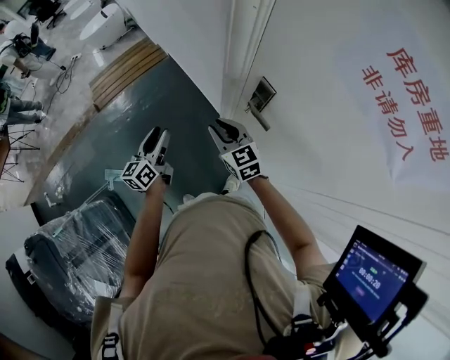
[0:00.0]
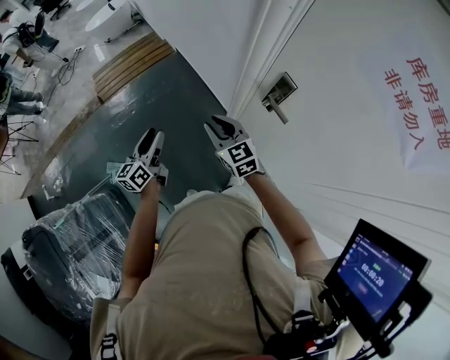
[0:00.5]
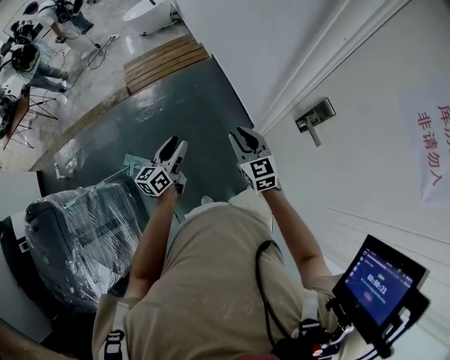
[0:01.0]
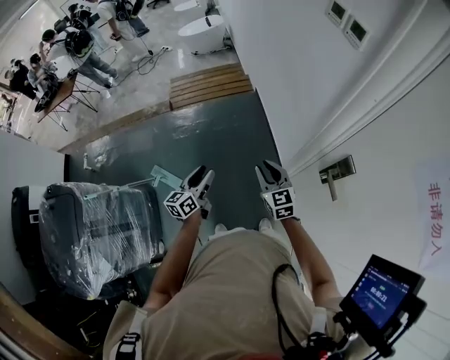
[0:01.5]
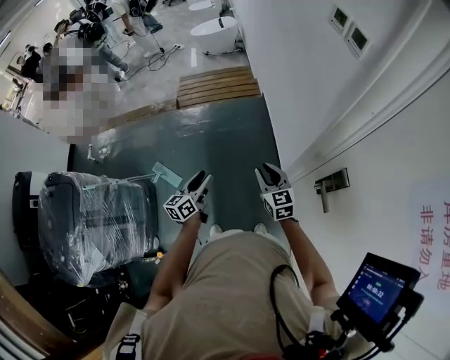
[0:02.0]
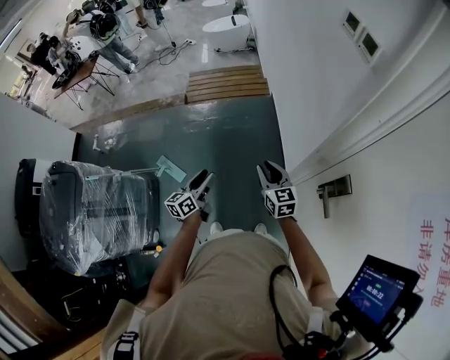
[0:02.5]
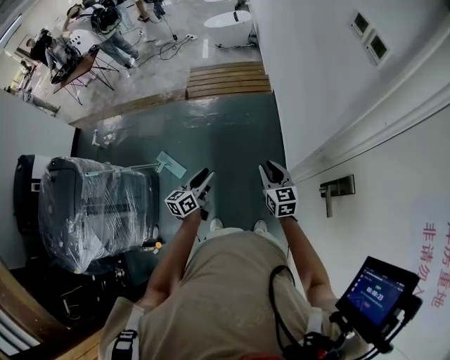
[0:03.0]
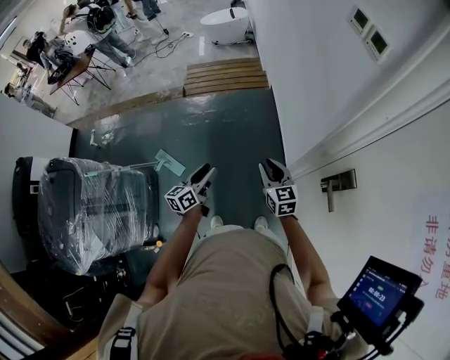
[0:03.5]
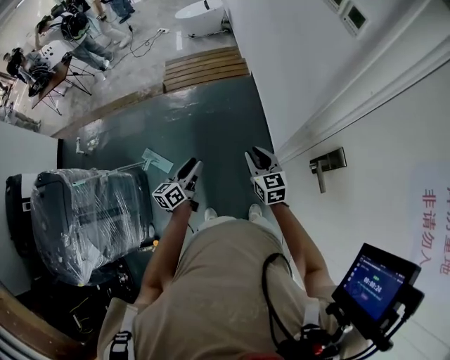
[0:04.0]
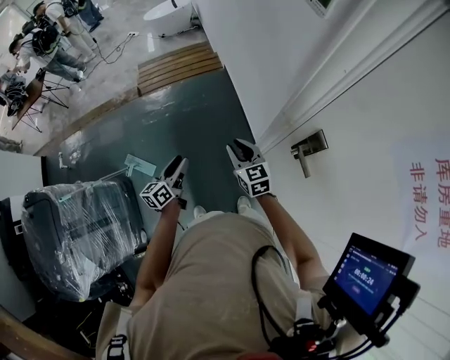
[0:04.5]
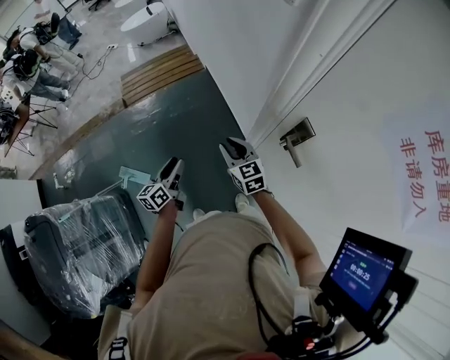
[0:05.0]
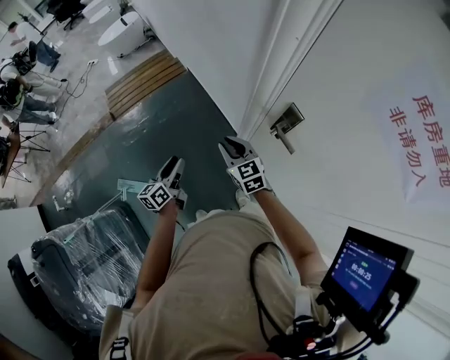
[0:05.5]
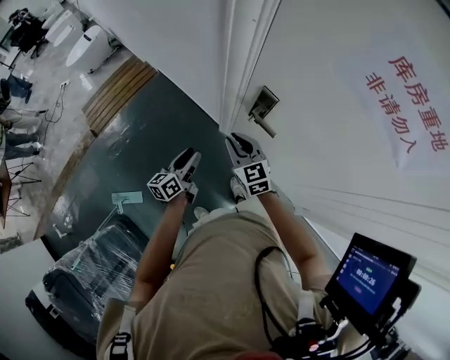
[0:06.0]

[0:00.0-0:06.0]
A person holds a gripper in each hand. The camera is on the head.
0.0 to 2.0 s: The right gripper goes approximately 10 cm to the left and forward. The left gripper shifts some 15 cm to the left, and changes its angle by about 20 degrees.
2.0 to 4.0 s: There are only small adjustments of the grippers.
4.0 to 6.0 s: The right gripper shifts by some 15 cm, and changes its angle by approximately 30 degrees, while the left gripper shifts by roughly 20 cm, and rotates about 40 degrees.

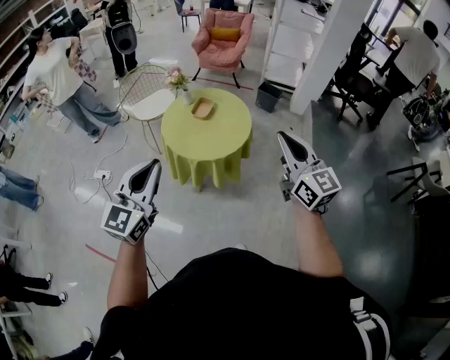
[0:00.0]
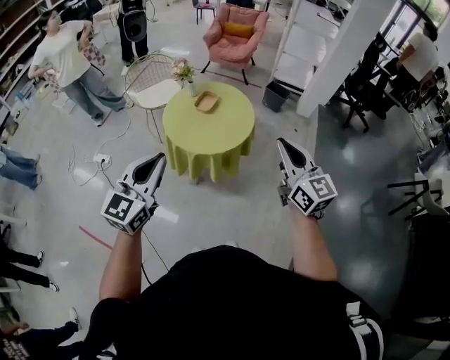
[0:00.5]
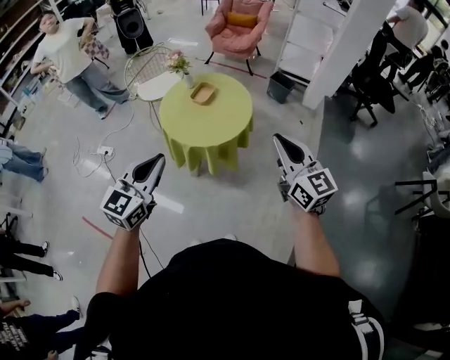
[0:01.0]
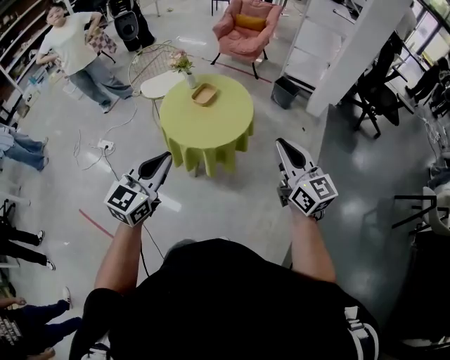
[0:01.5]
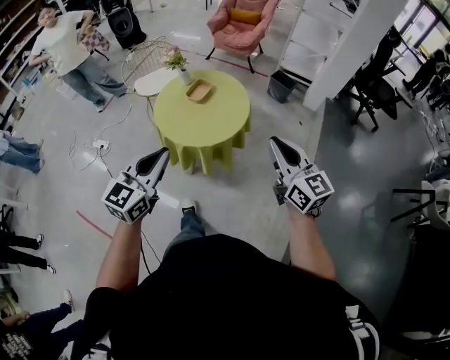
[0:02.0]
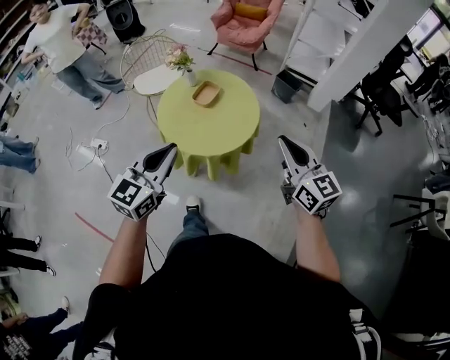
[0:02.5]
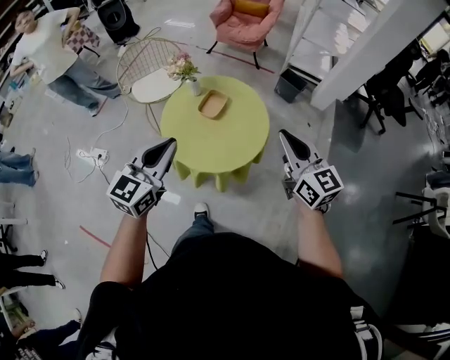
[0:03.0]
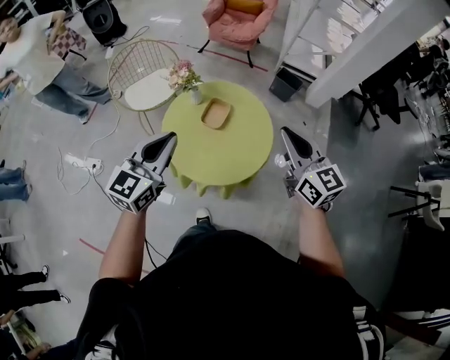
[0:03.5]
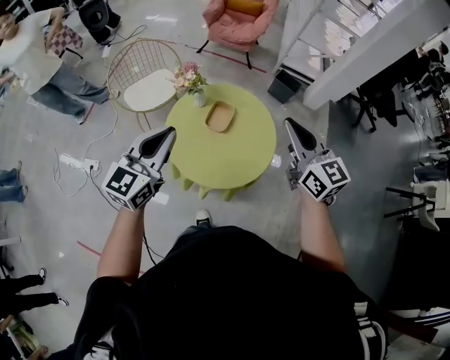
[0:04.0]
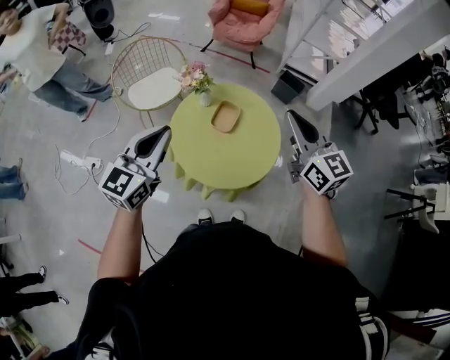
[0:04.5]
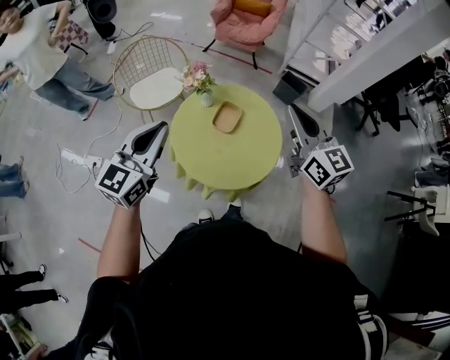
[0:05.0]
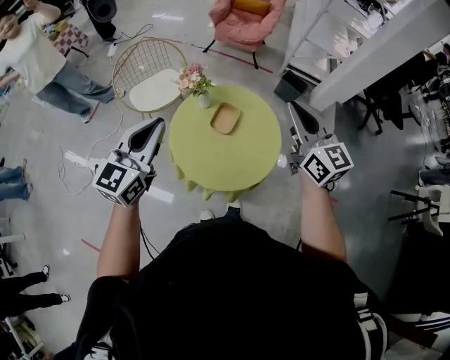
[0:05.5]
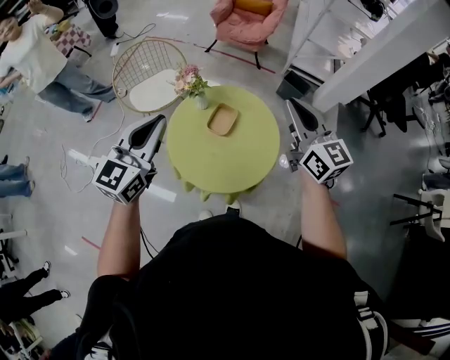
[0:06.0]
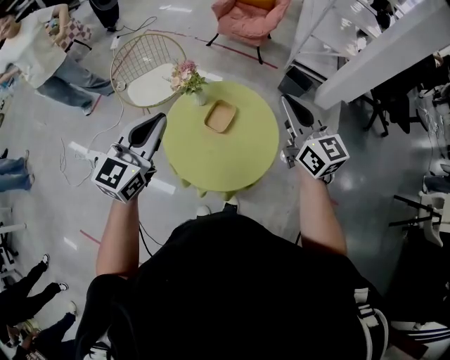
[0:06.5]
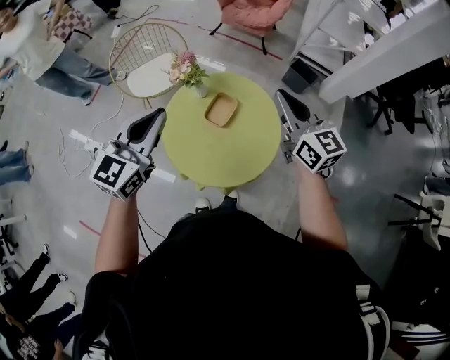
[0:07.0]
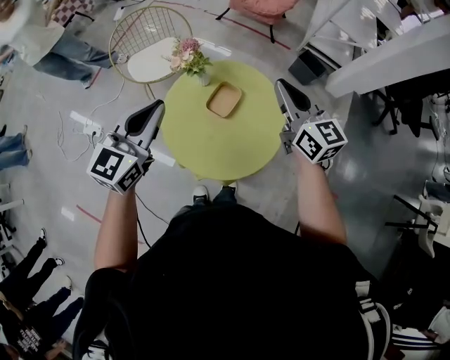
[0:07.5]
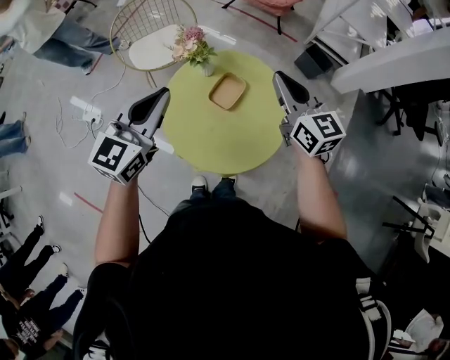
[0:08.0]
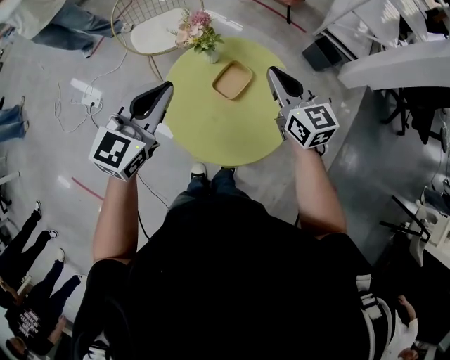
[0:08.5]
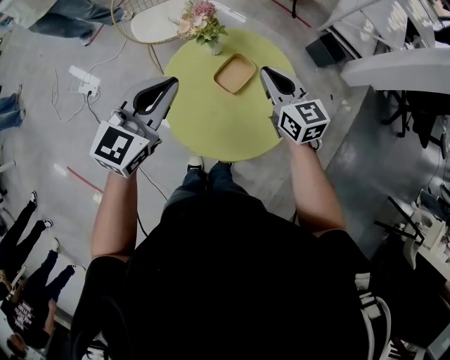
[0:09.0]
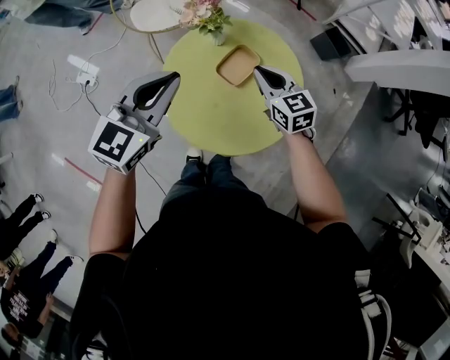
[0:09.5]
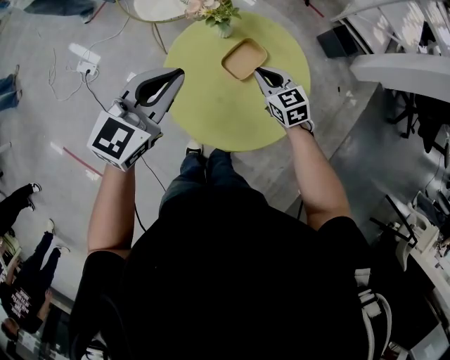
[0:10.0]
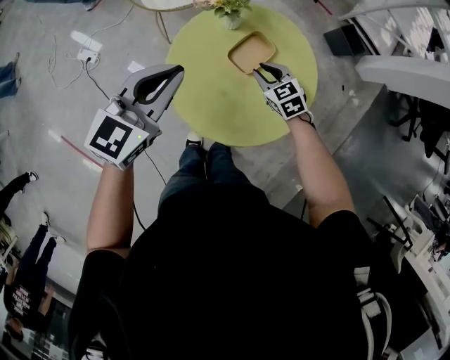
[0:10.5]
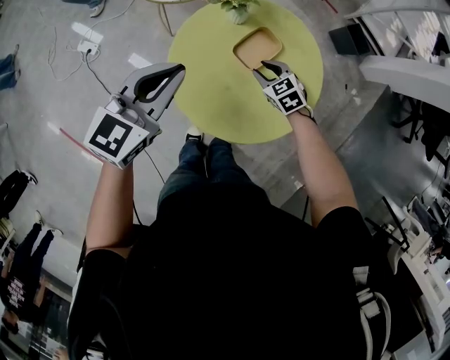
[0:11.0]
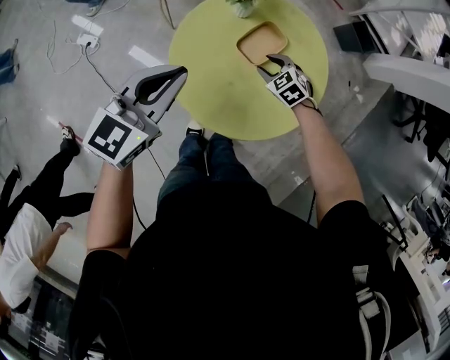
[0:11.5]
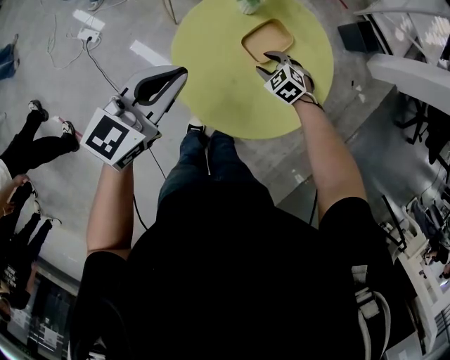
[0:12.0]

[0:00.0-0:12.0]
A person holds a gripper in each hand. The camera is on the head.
0.0 to 2.0 s: The grippers both shift to the right and downward by approximately 15 cm.
2.0 to 4.0 s: The grippers both shift forward and to the left by about 40 cm.
4.0 to 6.0 s: The right gripper shifts approximately 5 cm forward. Meanwhile the left gripper ends up some 5 cm from where it was.
6.0 to 8.0 s: The right gripper shifts roughly 15 cm downward and forward, while the left gripper travels downward and forward by approximately 10 cm.
8.0 to 10.0 s: The right gripper shifts about 25 cm downward, and changes its angle by roughly 30 degrees. Meanwhile the left gripper shifts approximately 10 cm downward.
10.0 to 12.0 s: The right gripper heads downward, covering approximately 15 cm, swivels approximately 40 degrees, and opens its fingers. Meanwhile the left gripper goes approximately 5 cm downward.

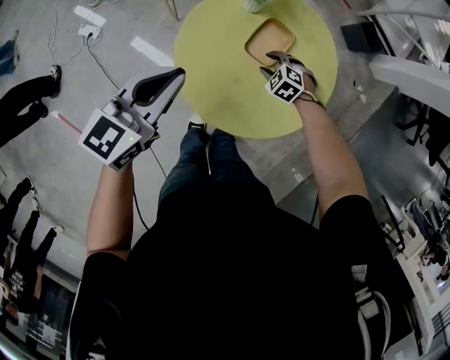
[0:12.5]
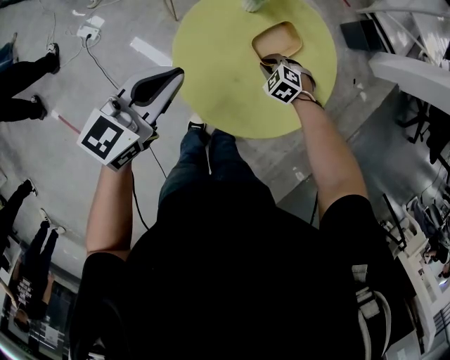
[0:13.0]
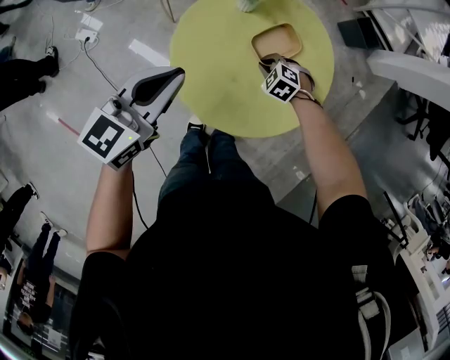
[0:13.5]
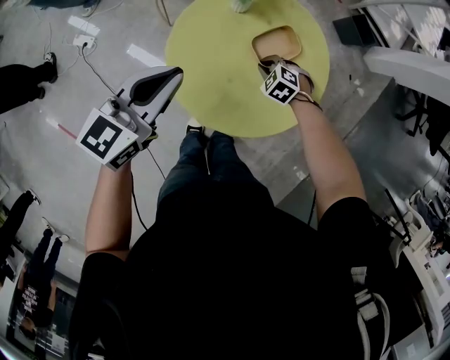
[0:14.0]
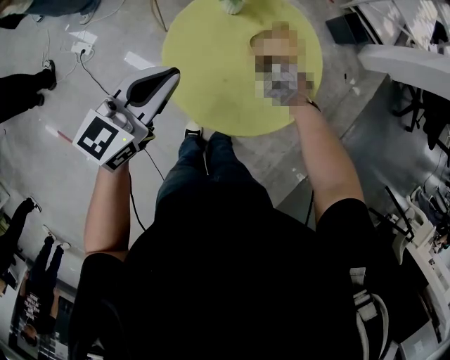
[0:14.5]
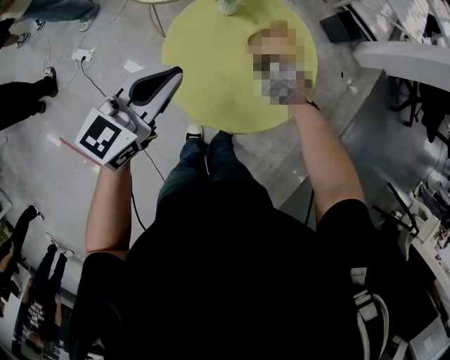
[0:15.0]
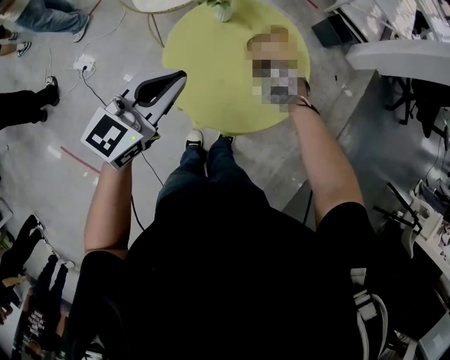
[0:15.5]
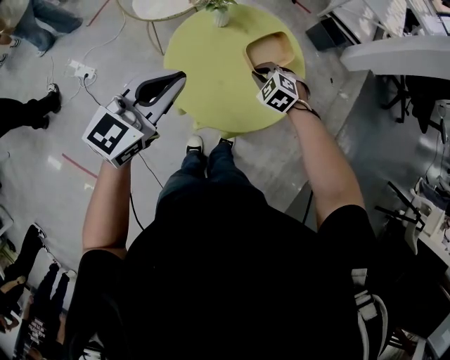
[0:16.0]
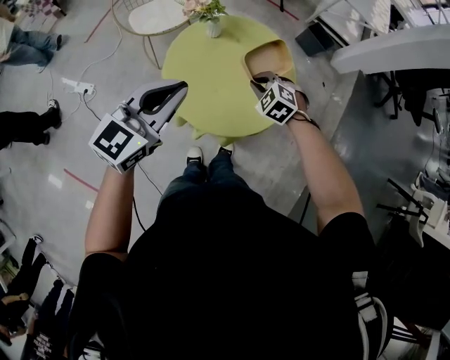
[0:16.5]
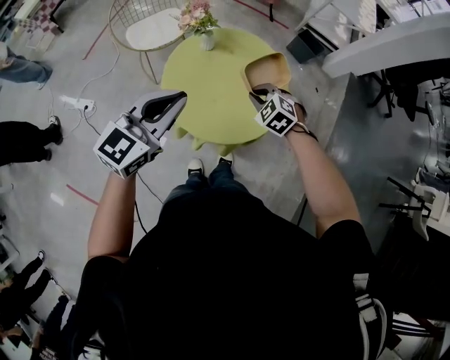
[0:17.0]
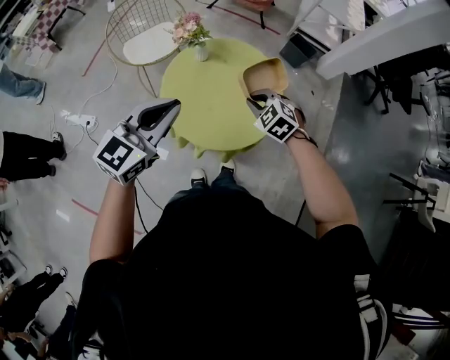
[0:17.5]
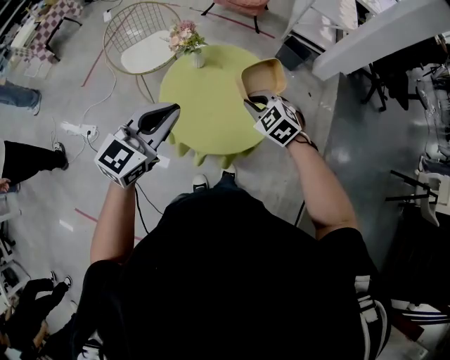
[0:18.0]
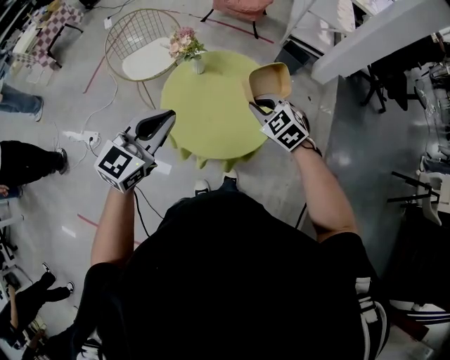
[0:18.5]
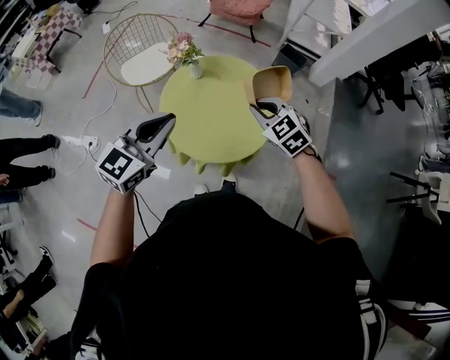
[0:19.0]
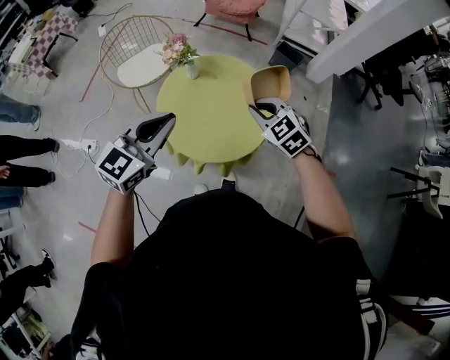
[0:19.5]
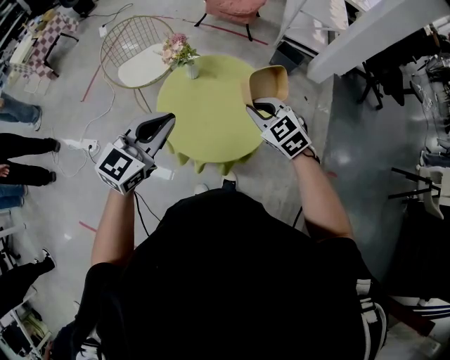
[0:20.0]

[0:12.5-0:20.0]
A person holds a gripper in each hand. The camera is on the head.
12.5 to 14.5 s: The right gripper closes.
14.5 to 16.5 s: The grippers both shift upward and backward by approximately 15 cm.
16.5 to 18.0 s: The left gripper moves roughly 5 cm. Meanwhile the right gripper moves upward and backward, some 15 cm.
18.0 to 20.0 s: The right gripper shifts approximately 5 cm upward.

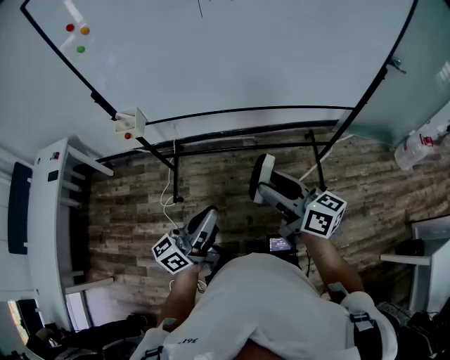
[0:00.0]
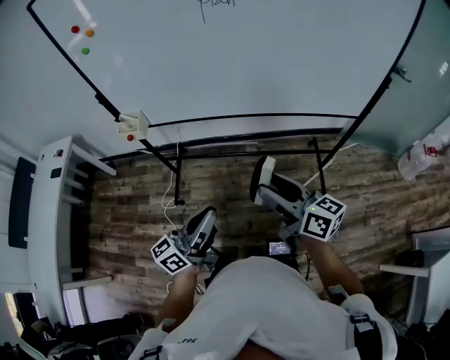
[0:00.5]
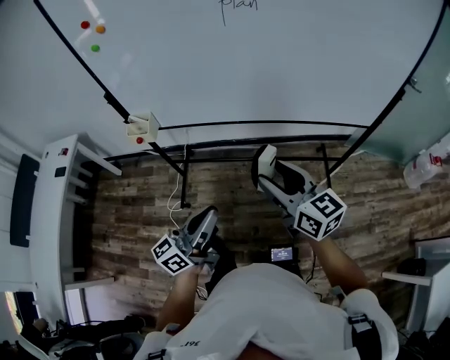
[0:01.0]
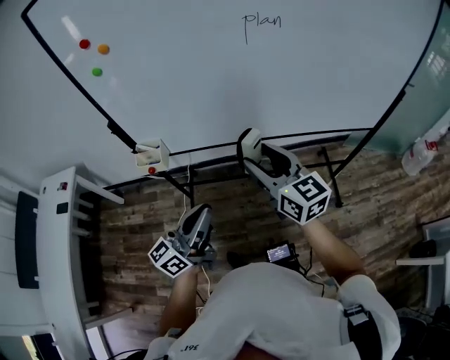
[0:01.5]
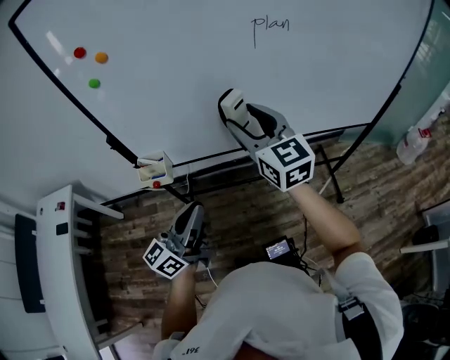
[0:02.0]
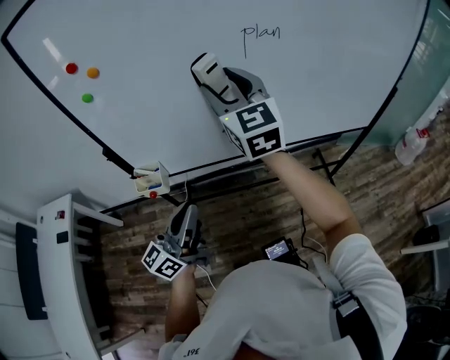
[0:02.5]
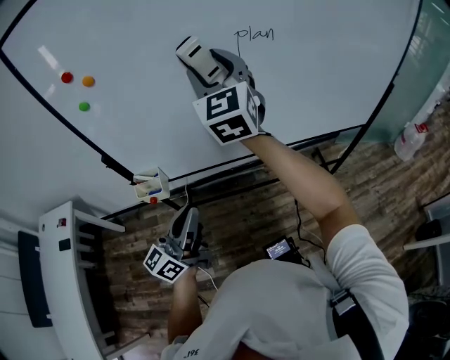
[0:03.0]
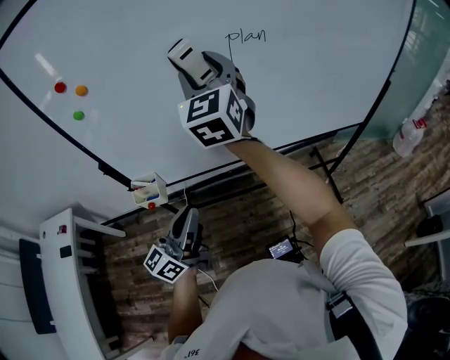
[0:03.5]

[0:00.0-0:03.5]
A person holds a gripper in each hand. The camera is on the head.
0.0 to 2.0 s: The right gripper heads forward, to the left and upward, covering roughly 35 cm, and twists roughly 40 degrees counterclockwise, seen from behind. The left gripper travels to the left and forward by some 30 cm.
2.0 to 3.5 s: The right gripper heads upward and forward, covering about 15 cm, and rotates roughly 30 degrees, while the left gripper moves roughly 5 cm.
